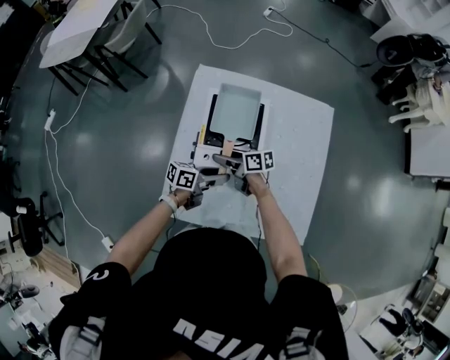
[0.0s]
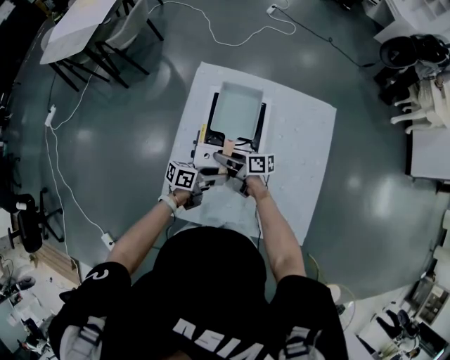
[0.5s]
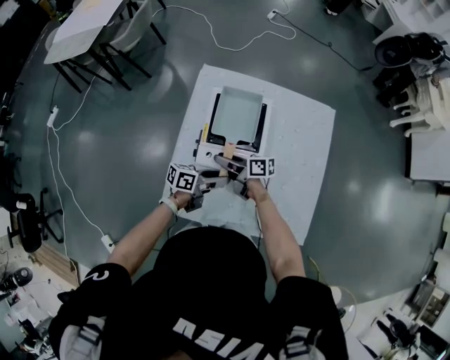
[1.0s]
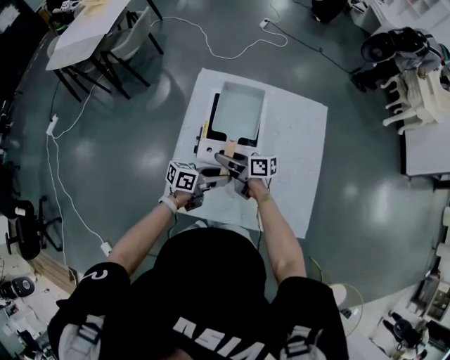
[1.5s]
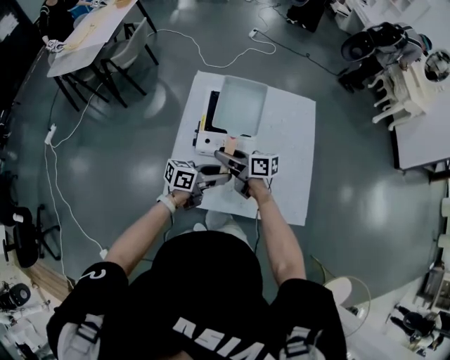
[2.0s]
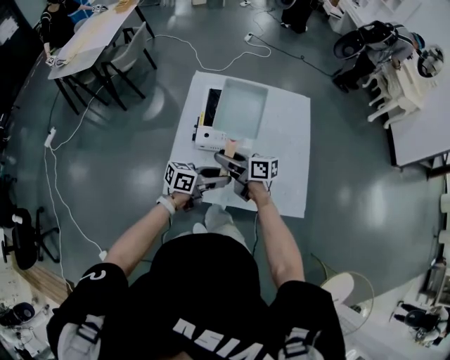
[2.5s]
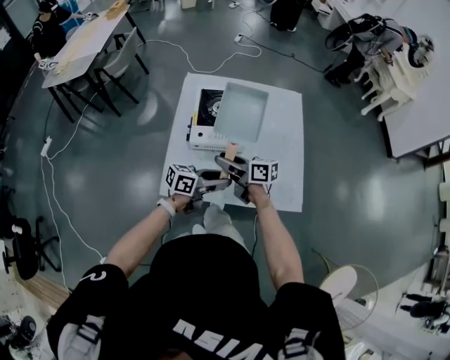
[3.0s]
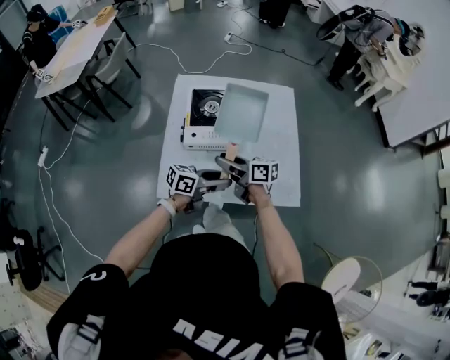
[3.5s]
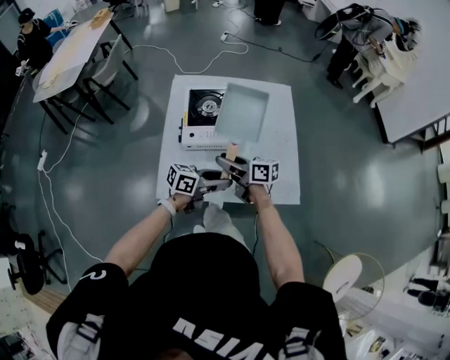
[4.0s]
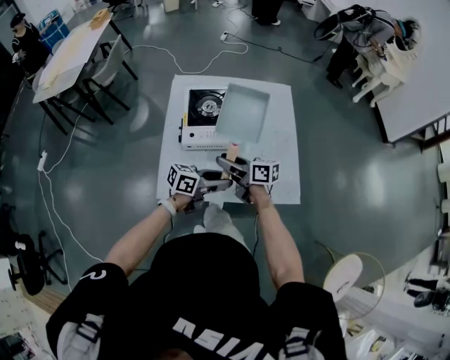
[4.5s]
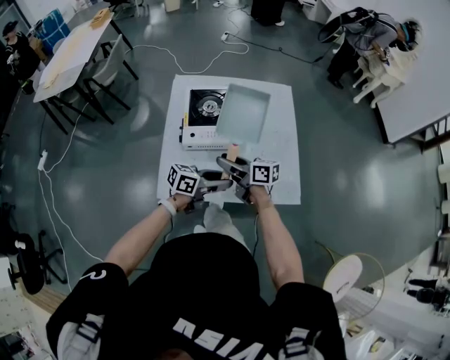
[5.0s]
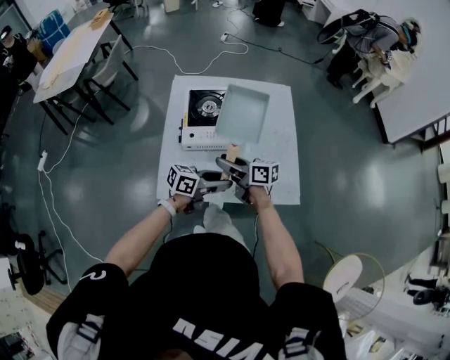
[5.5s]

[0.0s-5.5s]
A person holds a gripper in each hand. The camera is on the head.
0.0s to 2.0s: The right gripper is displaced upward by some 15 cm. The left gripper ends up roughly 15 cm from where it was.
2.0s to 3.5s: The left gripper ends up some 10 cm from where it was. Meanwhile the right gripper moves about 10 cm.
3.5s to 5.5s: The two grippers keep their place.

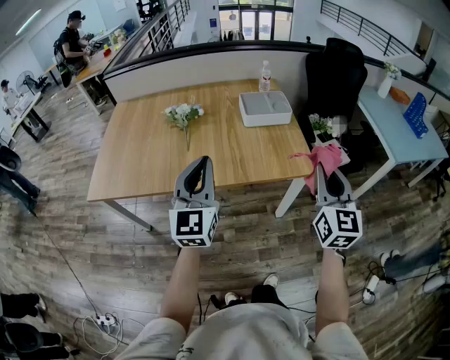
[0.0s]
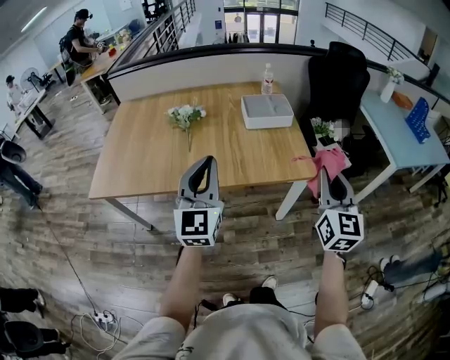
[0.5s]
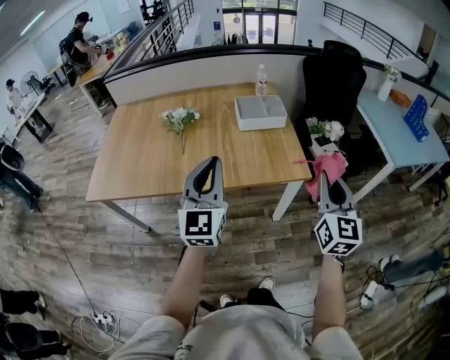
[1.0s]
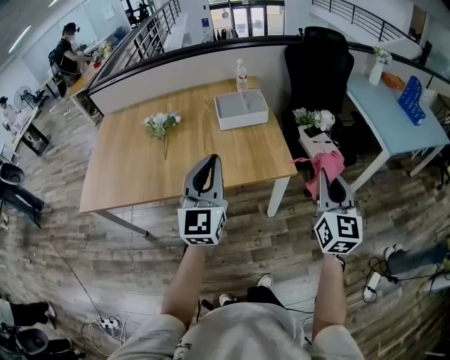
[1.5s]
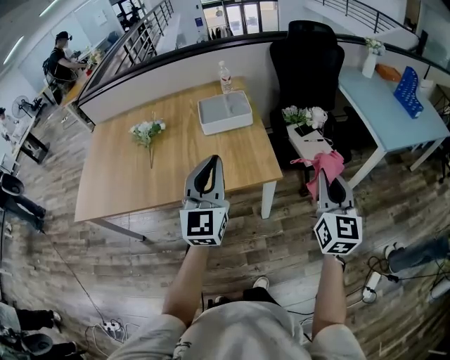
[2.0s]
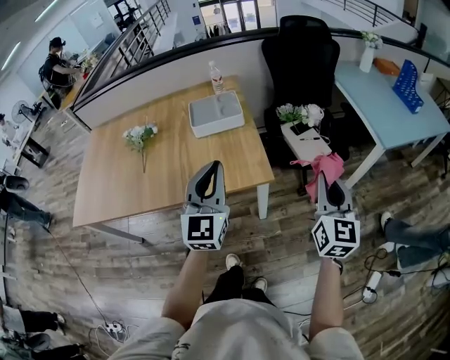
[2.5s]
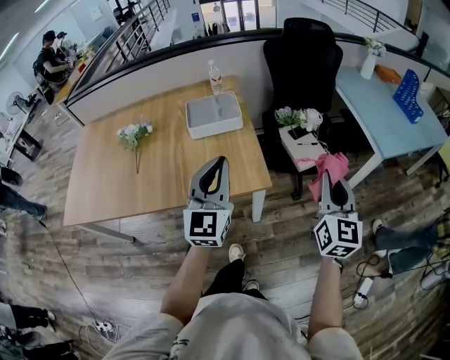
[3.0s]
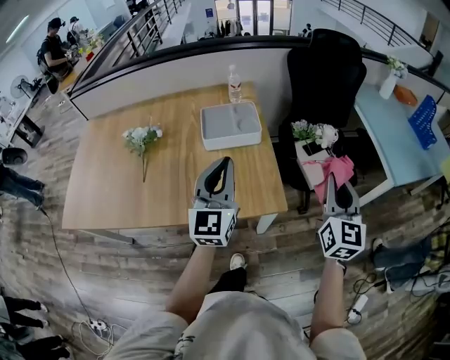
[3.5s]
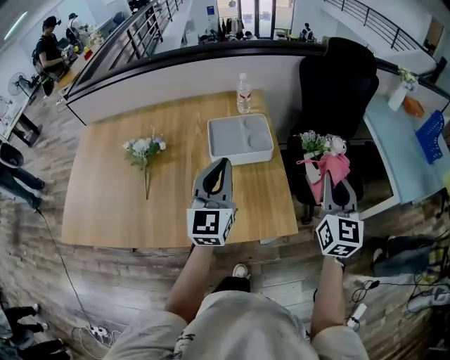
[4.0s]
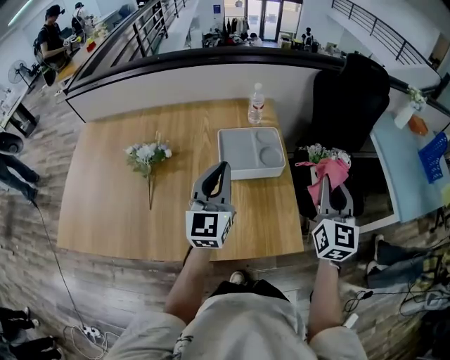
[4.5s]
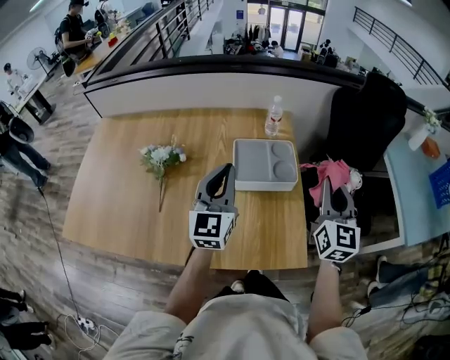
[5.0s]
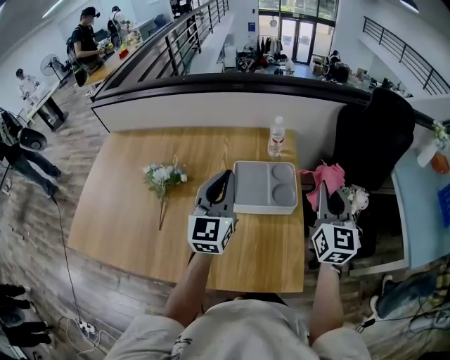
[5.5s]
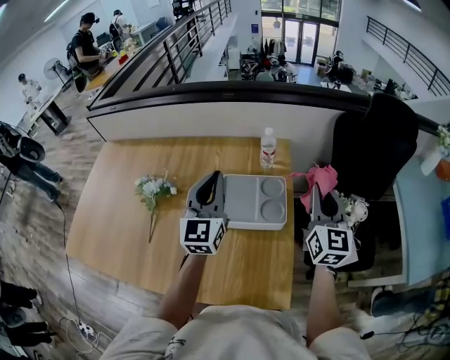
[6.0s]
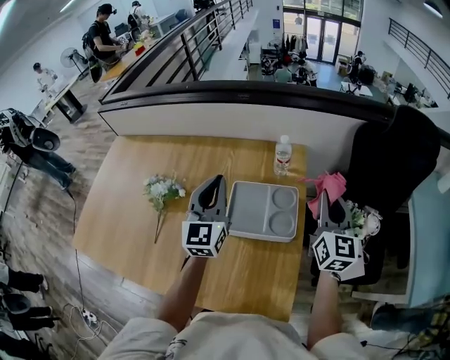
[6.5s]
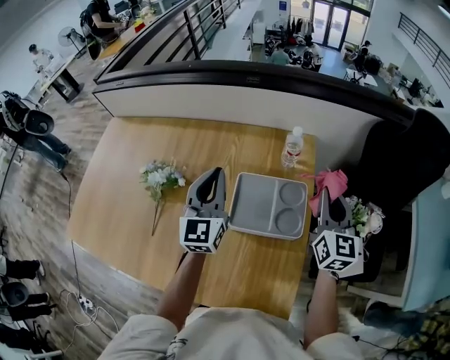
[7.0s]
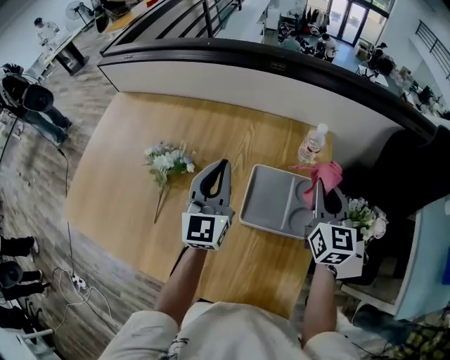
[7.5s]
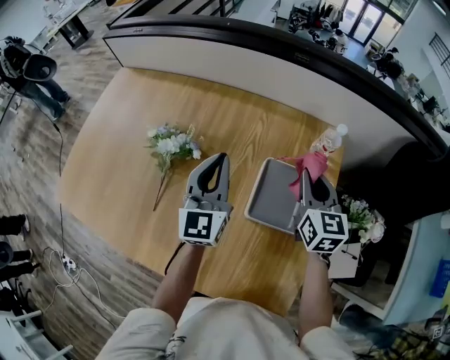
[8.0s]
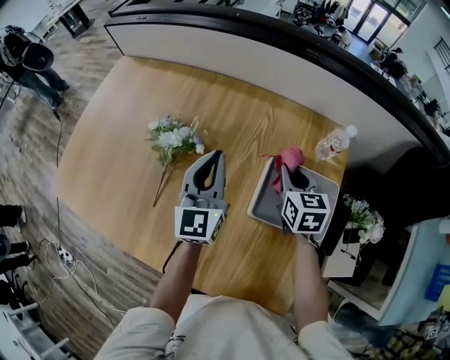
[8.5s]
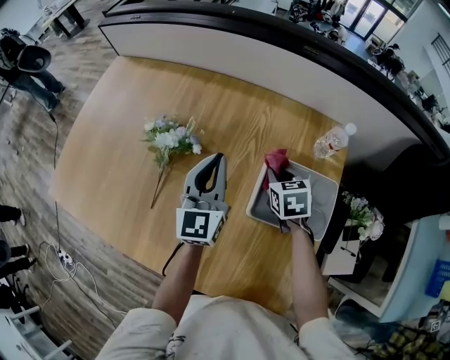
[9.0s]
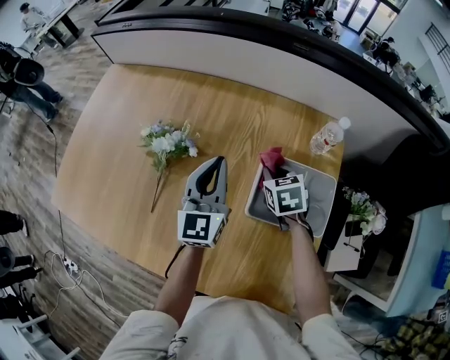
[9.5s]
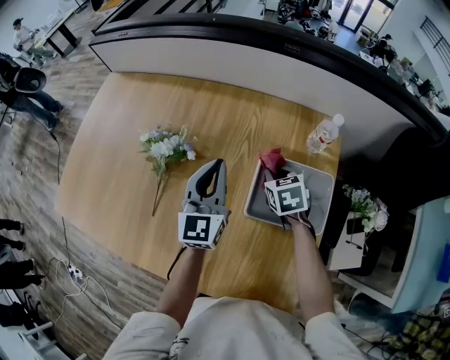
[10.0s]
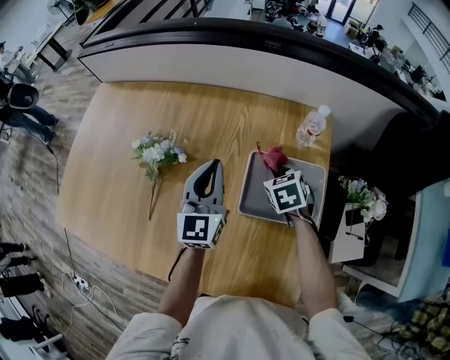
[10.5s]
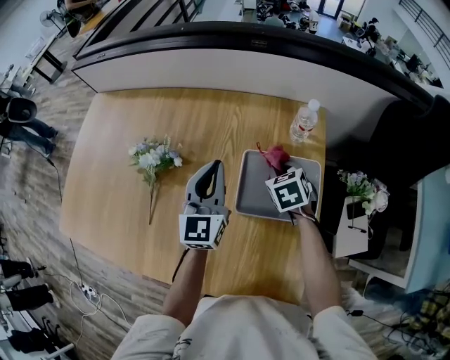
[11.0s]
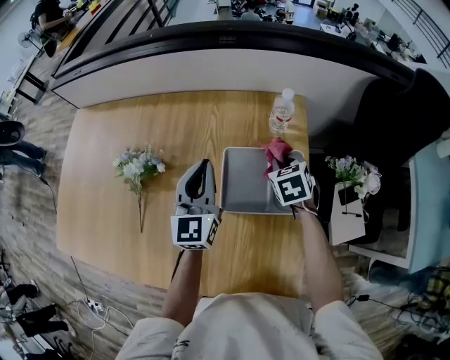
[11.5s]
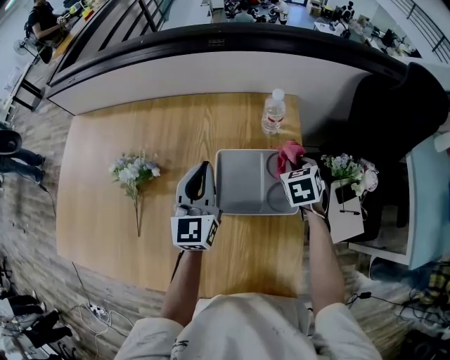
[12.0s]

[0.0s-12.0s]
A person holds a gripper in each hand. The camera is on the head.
0.0s to 2.0s: The two grippers go about 20 cm to the right.
2.0s to 4.0s: Both grippers travel together forward, about 20 cm.
4.0s to 6.0s: The two grippers go roughly 20 cm forward.
6.0s to 8.0s: The left gripper goes approximately 15 cm to the left, downward and forward; the right gripper heads to the left, forward and downward, covering roughly 25 cm, and rotates about 30 degrees.
8.0s to 10.0s: The right gripper travels downward and to the left by about 15 cm, and points its fingers approximately 30 degrees further downward.
10.0s to 12.0s: The right gripper goes approximately 20 cm to the right, and swivels approximately 20 degrees. The left gripper goes about 10 cm to the right.

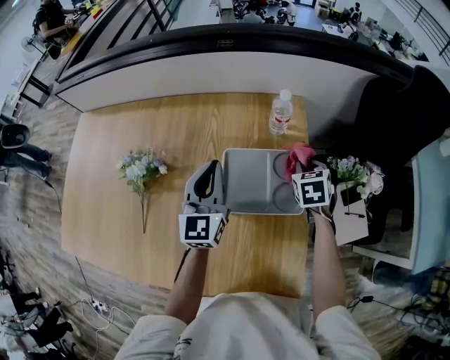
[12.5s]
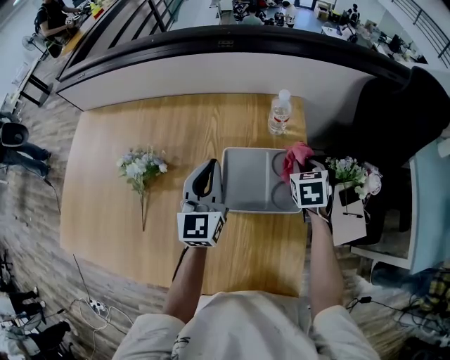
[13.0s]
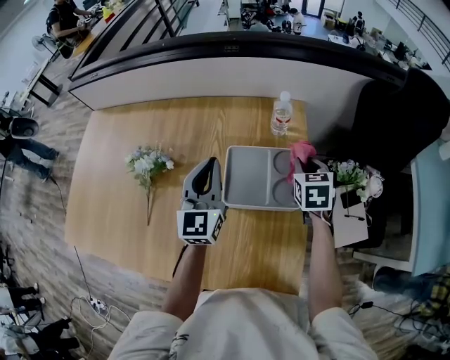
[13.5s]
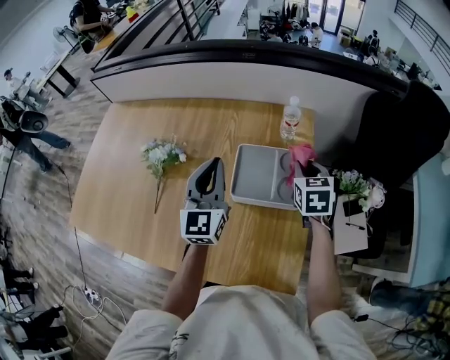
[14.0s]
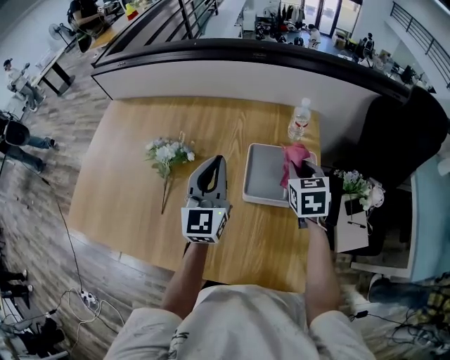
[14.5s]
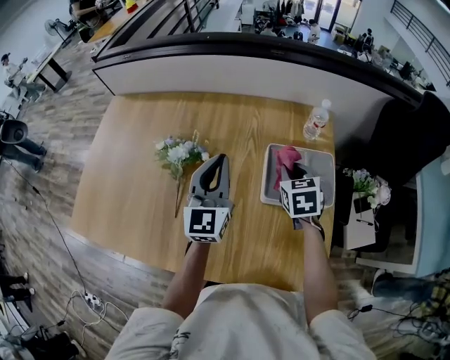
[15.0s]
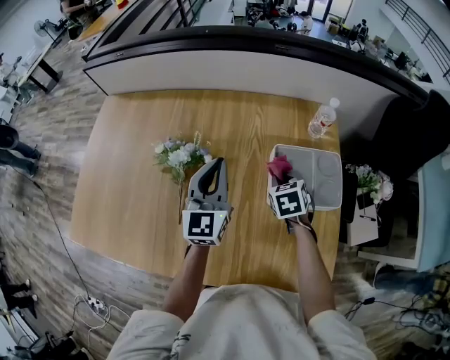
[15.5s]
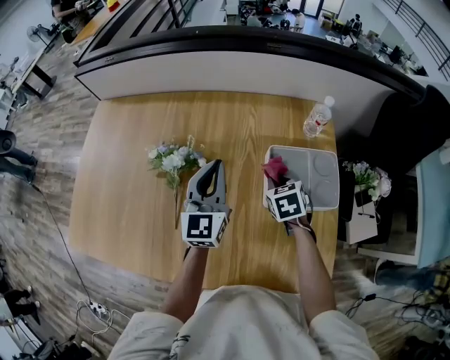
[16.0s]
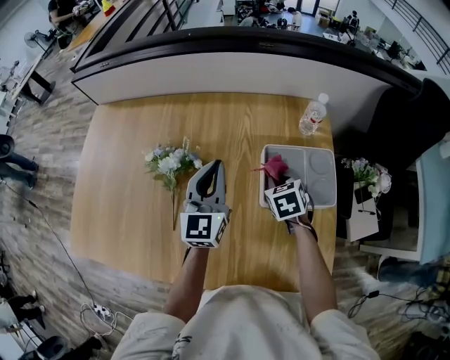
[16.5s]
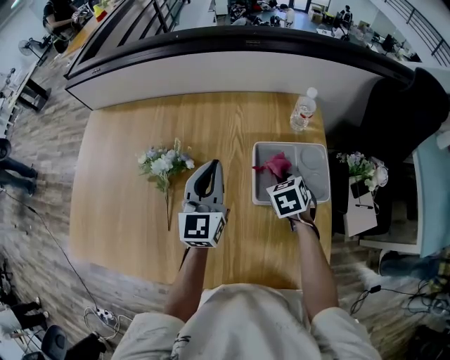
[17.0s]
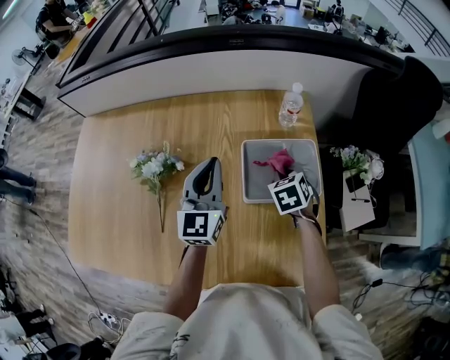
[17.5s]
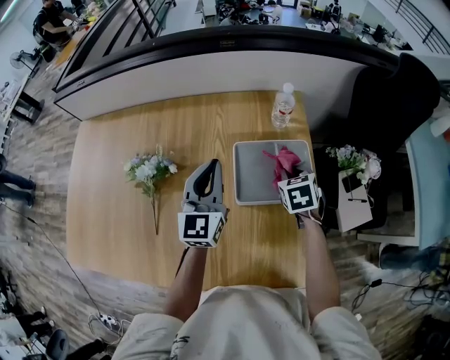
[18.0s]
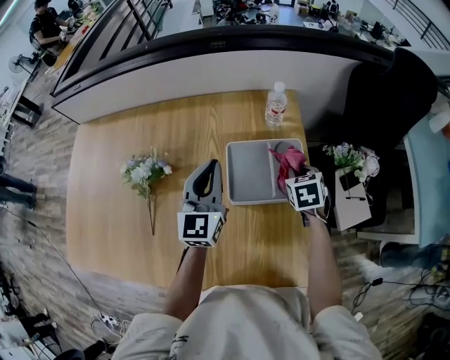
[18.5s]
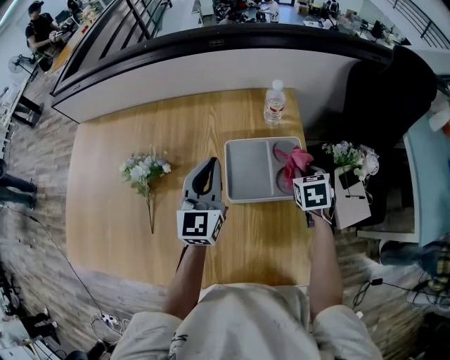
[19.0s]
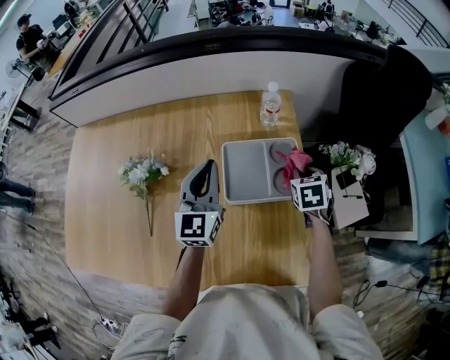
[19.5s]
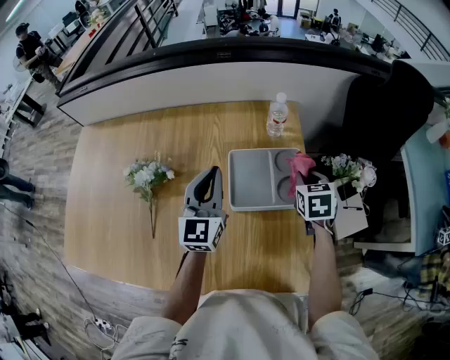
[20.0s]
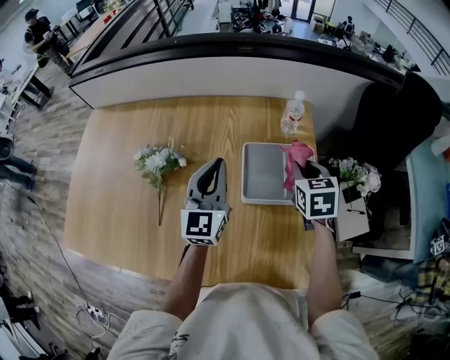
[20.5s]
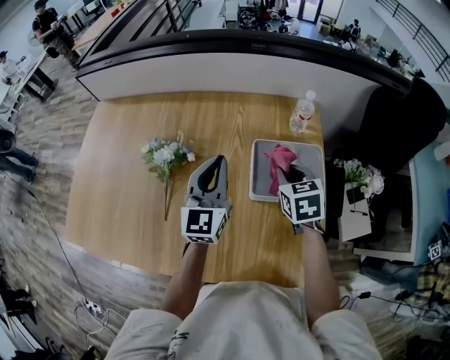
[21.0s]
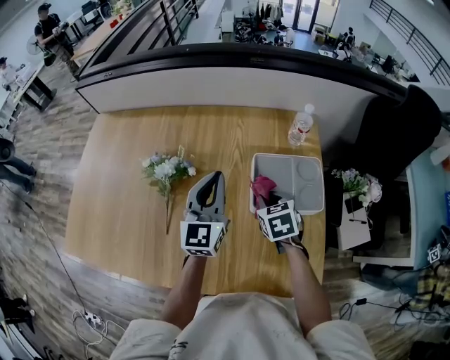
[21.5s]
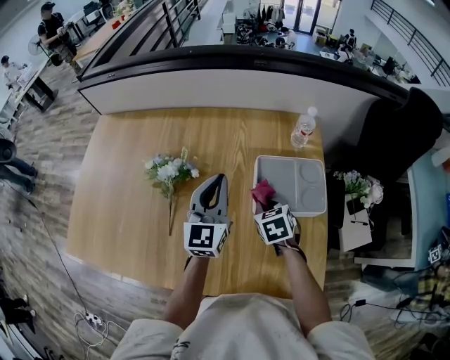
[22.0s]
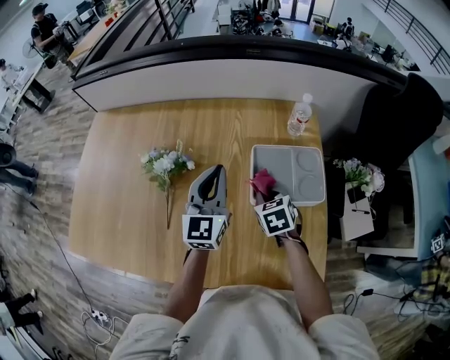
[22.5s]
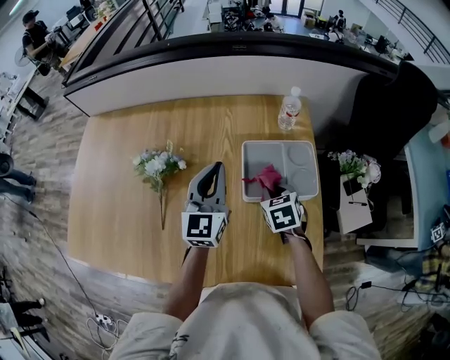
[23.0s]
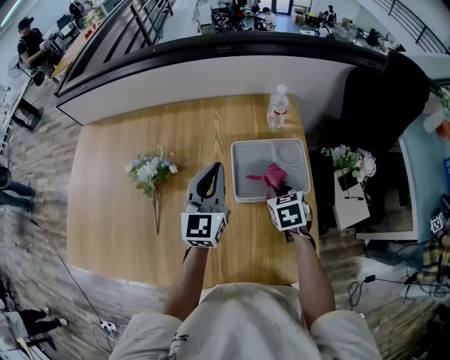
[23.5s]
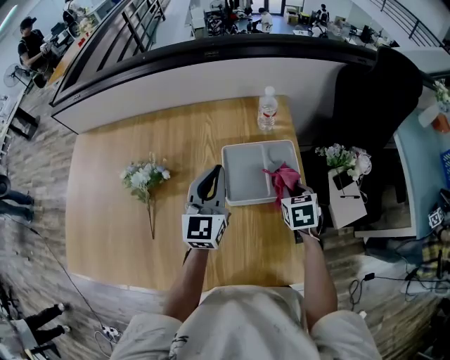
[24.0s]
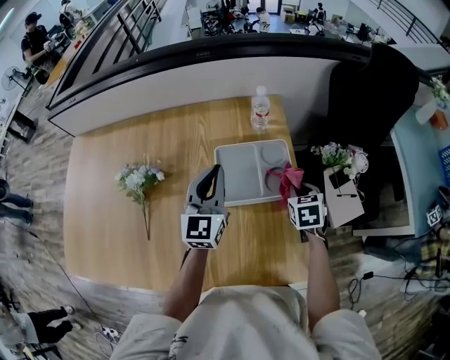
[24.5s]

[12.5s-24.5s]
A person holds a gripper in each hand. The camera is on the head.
12.5s to 14.5s: The left gripper travels backward, upward and to the left by roughly 10 cm. Meanwhile the right gripper heads upward, to the left and backward, covering roughly 15 cm.
14.5s to 16.5s: The left gripper is displaced to the left by roughly 5 cm. Meanwhile the right gripper moves downward and to the left, about 15 cm.
16.5s to 18.5s: The left gripper goes approximately 10 cm to the right. The right gripper travels to the right by about 20 cm.
18.5s to 20.5s: The right gripper is displaced upward and to the left by approximately 10 cm.
20.5s to 22.5s: The right gripper is displaced to the left and downward by roughly 15 cm.
22.5s to 24.5s: The right gripper goes approximately 20 cm to the right, and turns by approximately 20 degrees. Meanwhile the left gripper moves to the right, some 10 cm.
